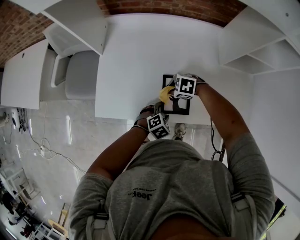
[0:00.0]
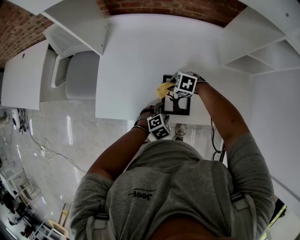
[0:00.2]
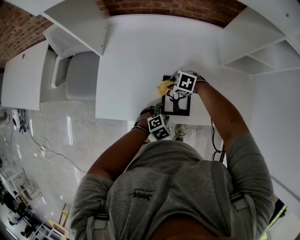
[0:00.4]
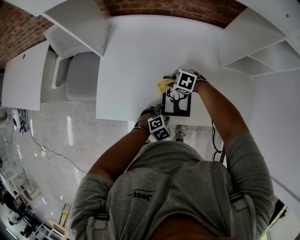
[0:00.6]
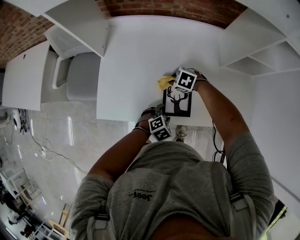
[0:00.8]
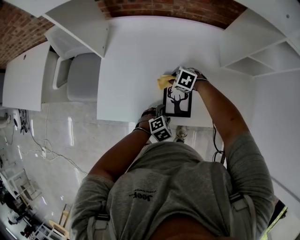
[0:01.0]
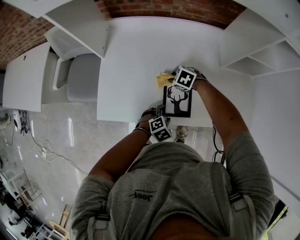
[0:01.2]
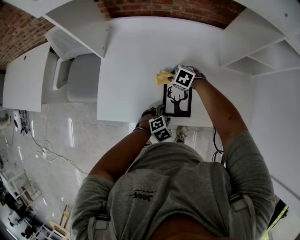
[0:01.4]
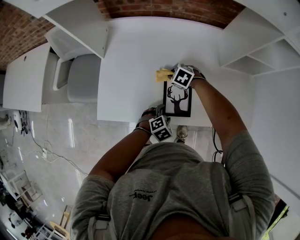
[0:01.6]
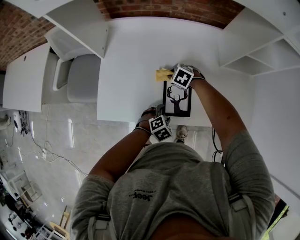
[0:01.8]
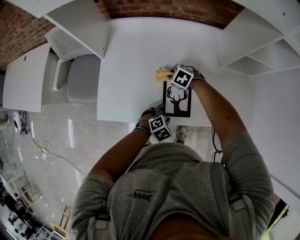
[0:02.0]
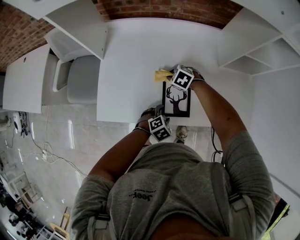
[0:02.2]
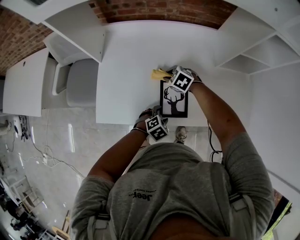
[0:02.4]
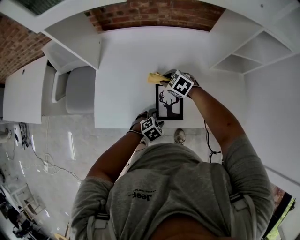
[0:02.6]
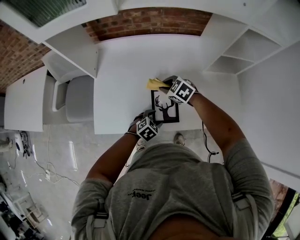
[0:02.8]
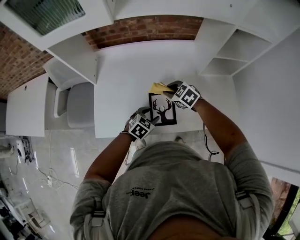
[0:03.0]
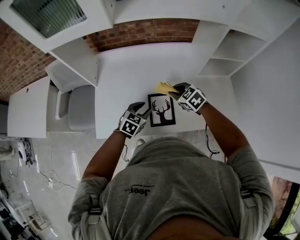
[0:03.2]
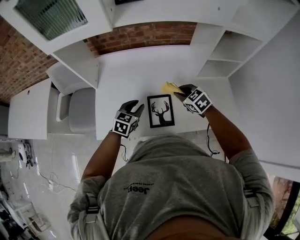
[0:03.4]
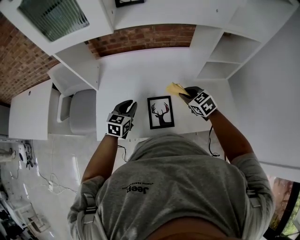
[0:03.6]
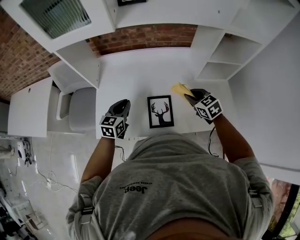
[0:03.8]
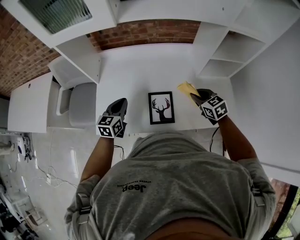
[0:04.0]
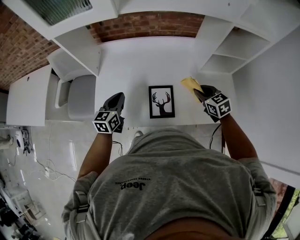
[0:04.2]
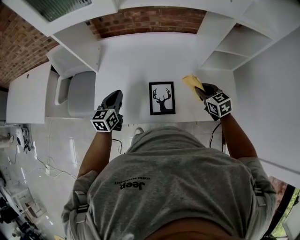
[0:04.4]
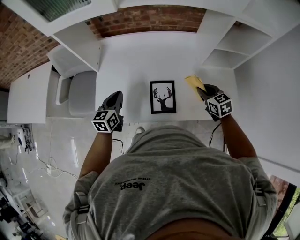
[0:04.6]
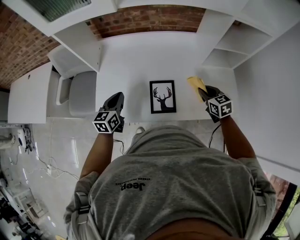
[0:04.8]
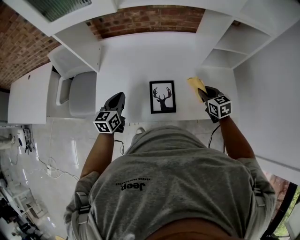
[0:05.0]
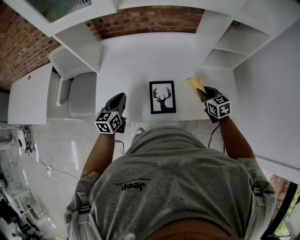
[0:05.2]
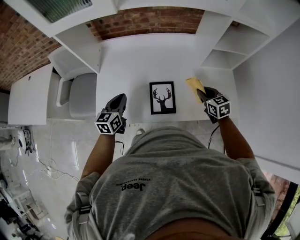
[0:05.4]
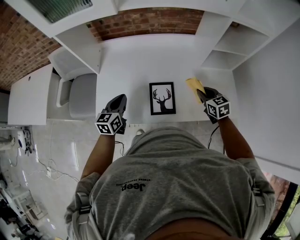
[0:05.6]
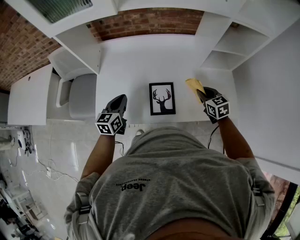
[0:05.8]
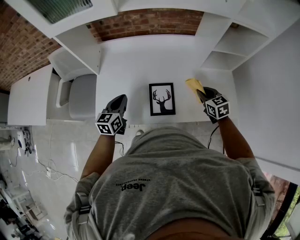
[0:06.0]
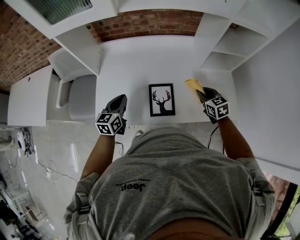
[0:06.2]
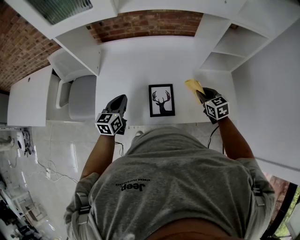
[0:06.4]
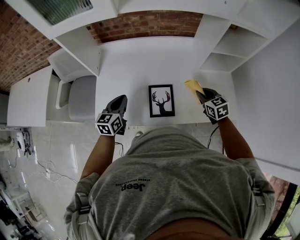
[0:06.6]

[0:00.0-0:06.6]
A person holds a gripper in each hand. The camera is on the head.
0:00.0 to 0:01.6: The right gripper ends up roughly 10 cm from where it was, and turns by some 20 degrees.
0:01.6 to 0:03.2: The right gripper is displaced upward and to the right by some 15 cm, and changes its angle by some 30 degrees, while the left gripper travels upward and forward by roughly 15 cm, and swivels about 30 degrees.
0:03.2 to 0:05.0: The left gripper travels to the left and upward by some 15 cm, changes its angle by about 40 degrees, and closes up, while the right gripper heads to the right and backward, covering some 15 cm, and turns by approximately 30 degrees.
0:05.0 to 0:06.6: The grippers stay close to where they were, moving slightly.

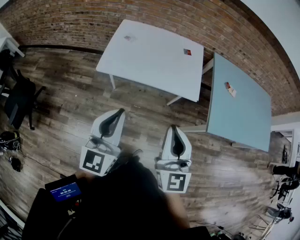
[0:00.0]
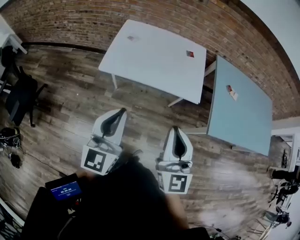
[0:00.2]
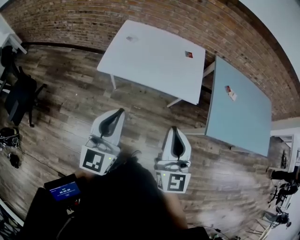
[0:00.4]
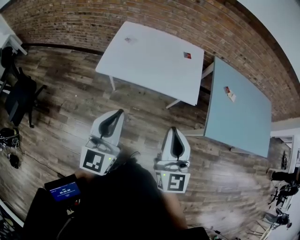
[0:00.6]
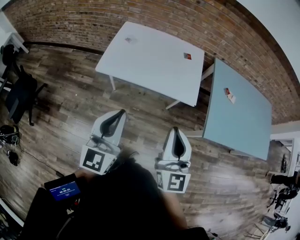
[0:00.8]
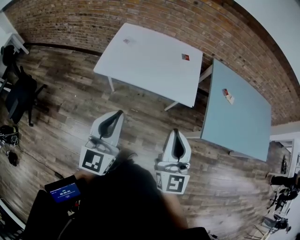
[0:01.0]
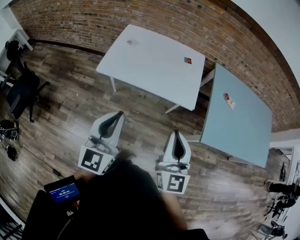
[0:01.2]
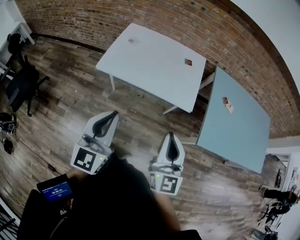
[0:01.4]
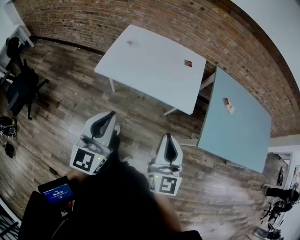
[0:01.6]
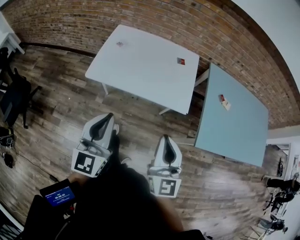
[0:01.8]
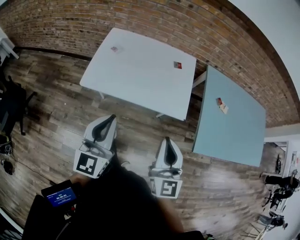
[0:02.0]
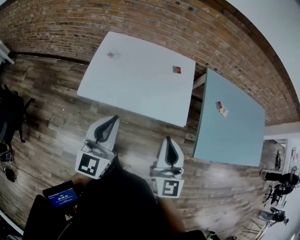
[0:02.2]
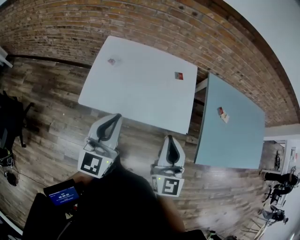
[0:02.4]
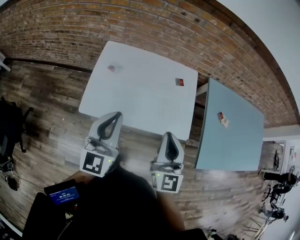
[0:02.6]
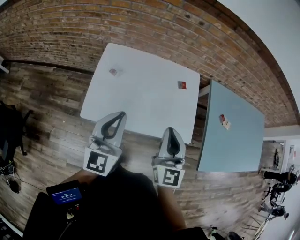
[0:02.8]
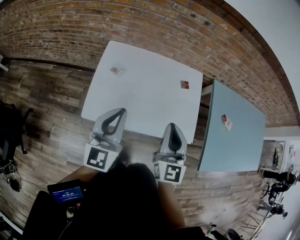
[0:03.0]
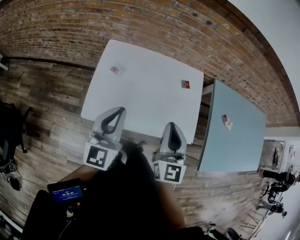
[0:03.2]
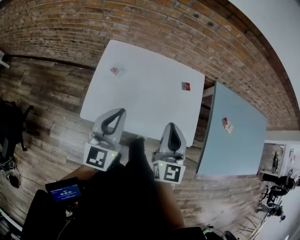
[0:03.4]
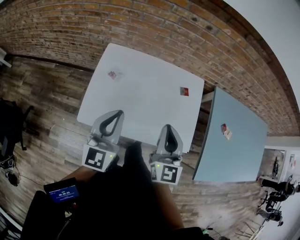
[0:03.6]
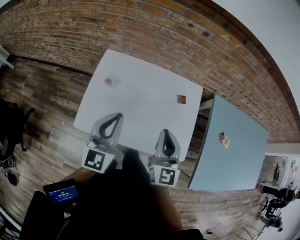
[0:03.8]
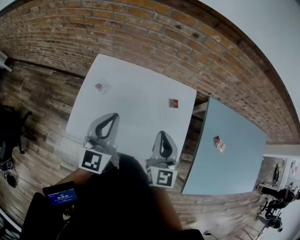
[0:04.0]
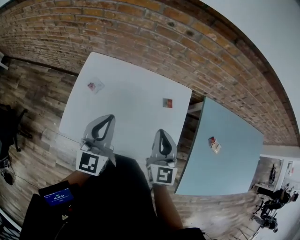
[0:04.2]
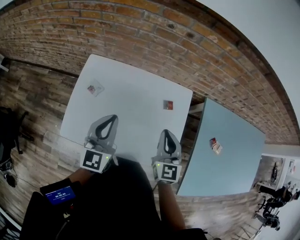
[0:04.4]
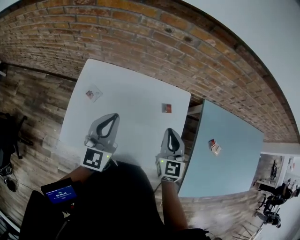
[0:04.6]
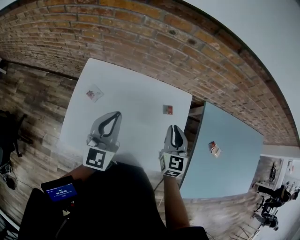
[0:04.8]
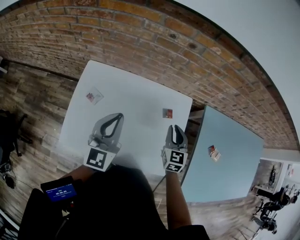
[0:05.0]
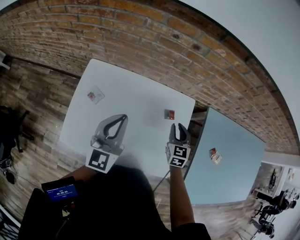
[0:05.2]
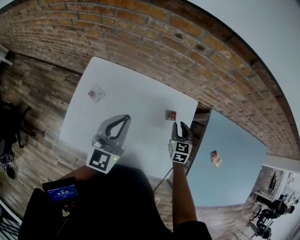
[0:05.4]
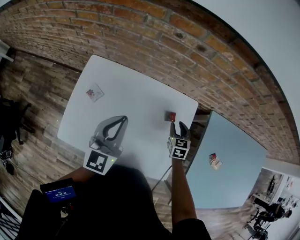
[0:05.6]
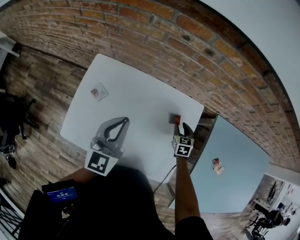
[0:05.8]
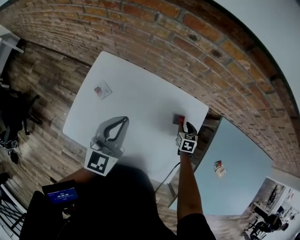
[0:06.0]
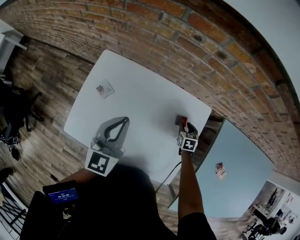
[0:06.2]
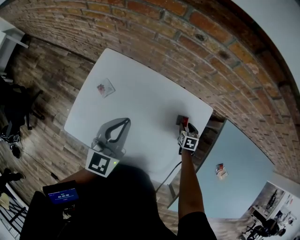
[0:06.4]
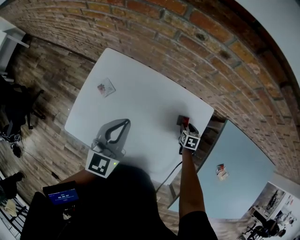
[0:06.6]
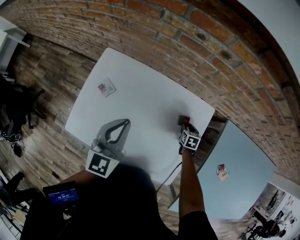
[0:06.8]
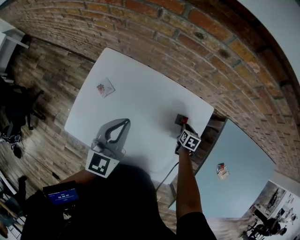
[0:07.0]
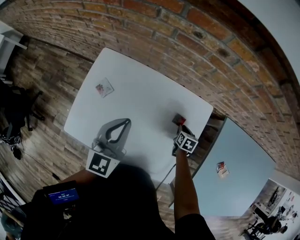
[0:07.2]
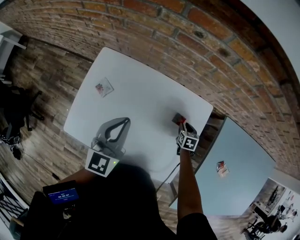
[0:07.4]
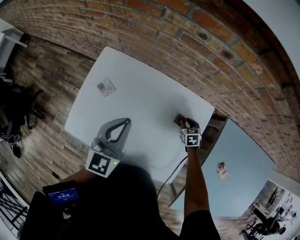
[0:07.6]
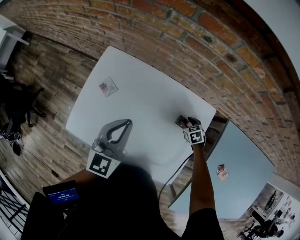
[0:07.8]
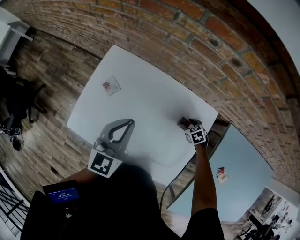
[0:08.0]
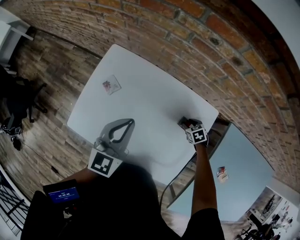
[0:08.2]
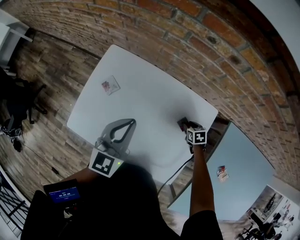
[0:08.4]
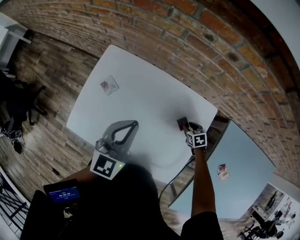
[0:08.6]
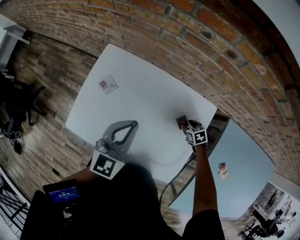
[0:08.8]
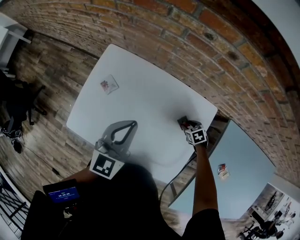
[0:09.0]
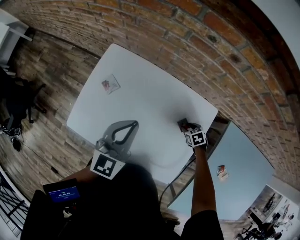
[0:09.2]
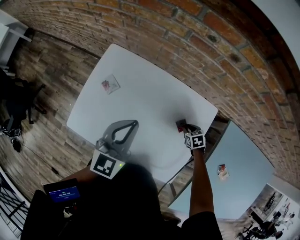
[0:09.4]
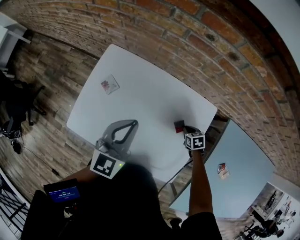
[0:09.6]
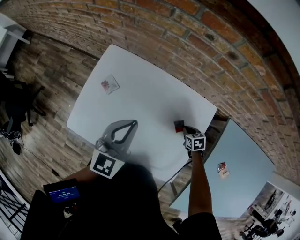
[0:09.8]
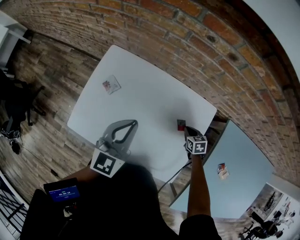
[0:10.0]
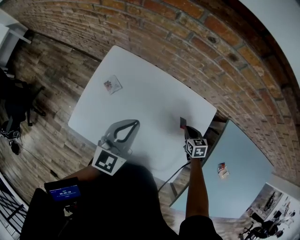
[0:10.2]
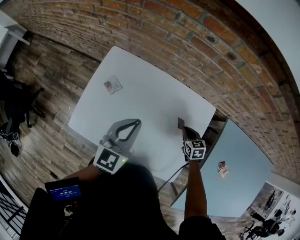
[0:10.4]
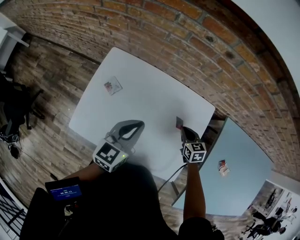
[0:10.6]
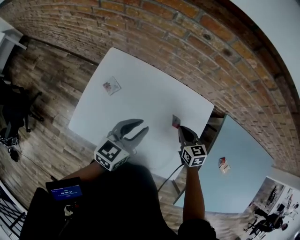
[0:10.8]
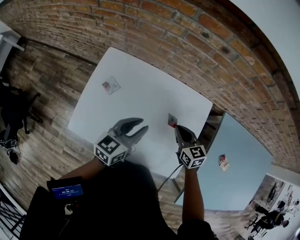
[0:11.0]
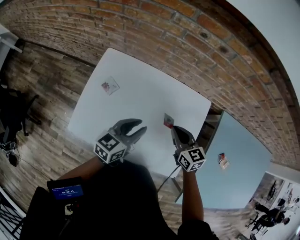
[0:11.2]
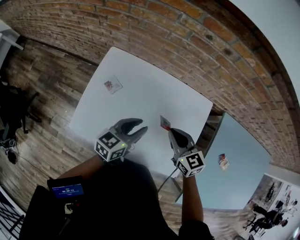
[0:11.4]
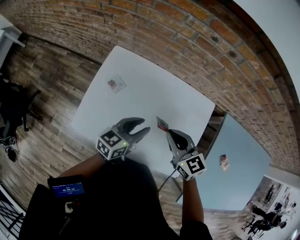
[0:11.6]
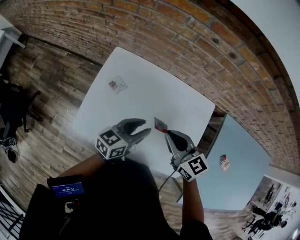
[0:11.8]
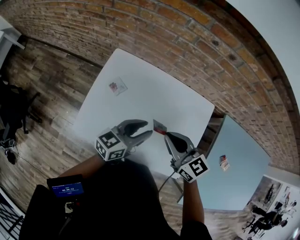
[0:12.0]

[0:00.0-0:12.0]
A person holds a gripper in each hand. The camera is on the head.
0:00.0 to 0:01.6: The right gripper heads to the right, covering about 5 cm.
0:01.6 to 0:03.0: Both grippers move forward, roughly 30 cm.
0:03.0 to 0:04.4: The right gripper travels forward, to the right and downward by about 20 cm. Meanwhile the left gripper goes approximately 15 cm forward and to the right.
0:04.4 to 0:06.0: The left gripper shifts about 10 cm forward, while the right gripper travels downward and forward by about 35 cm, angles its fingers downward, by roughly 40 degrees, and opens.
0:07.6 to 0:09.0: The right gripper turns by roughly 20 degrees.
0:09.0 to 0:10.4: The right gripper heads upward, covering roughly 10 cm, changes its angle by about 30 degrees, and closes its fingers.
0:10.4 to 0:12.0: The left gripper changes place by roughly 5 cm, swivels roughly 30 degrees, and opens up. The right gripper shifts some 30 cm upward and to the left, and points its fingers some 30 degrees further upward.

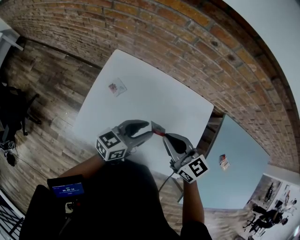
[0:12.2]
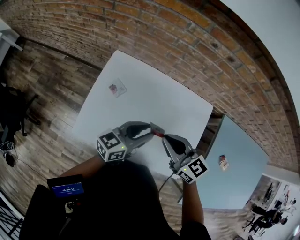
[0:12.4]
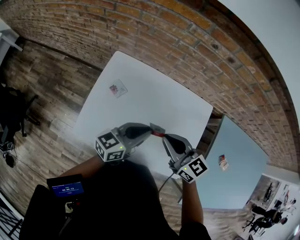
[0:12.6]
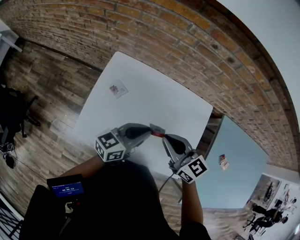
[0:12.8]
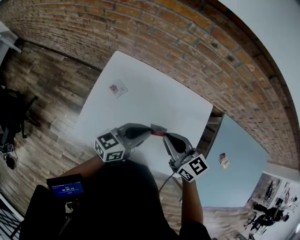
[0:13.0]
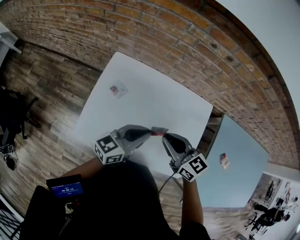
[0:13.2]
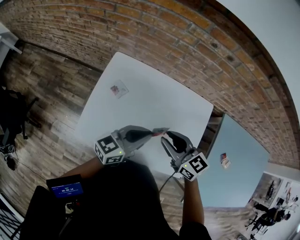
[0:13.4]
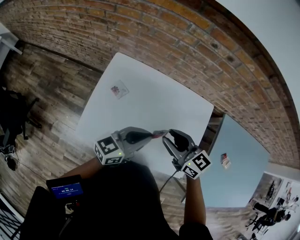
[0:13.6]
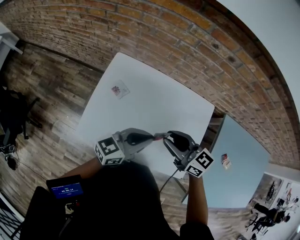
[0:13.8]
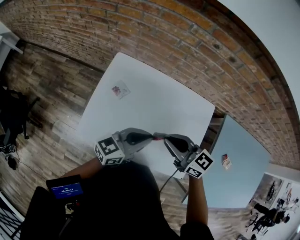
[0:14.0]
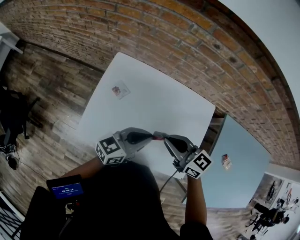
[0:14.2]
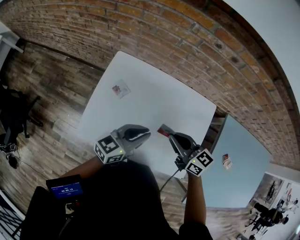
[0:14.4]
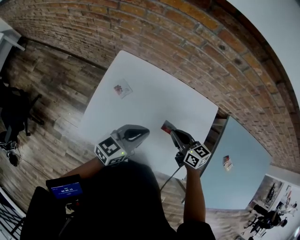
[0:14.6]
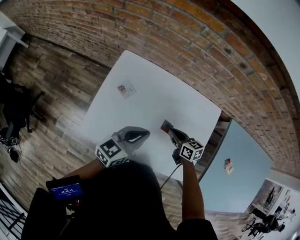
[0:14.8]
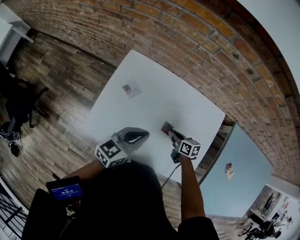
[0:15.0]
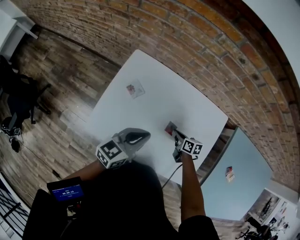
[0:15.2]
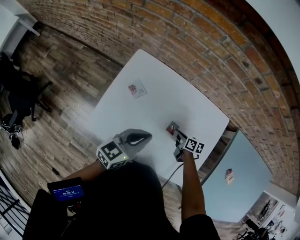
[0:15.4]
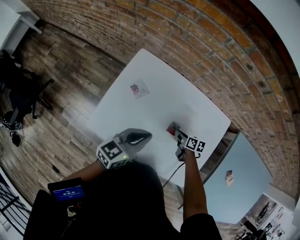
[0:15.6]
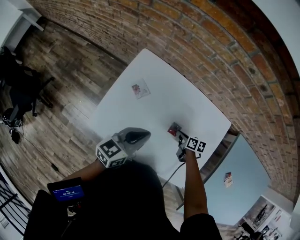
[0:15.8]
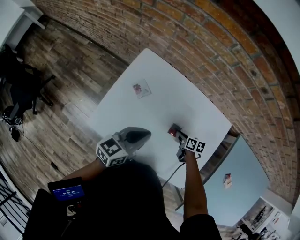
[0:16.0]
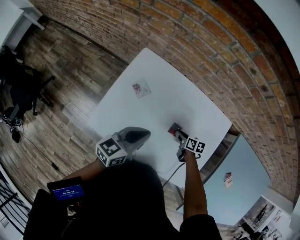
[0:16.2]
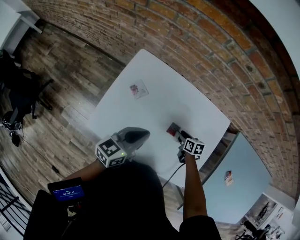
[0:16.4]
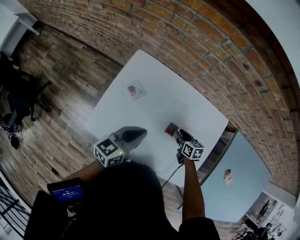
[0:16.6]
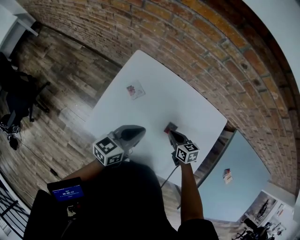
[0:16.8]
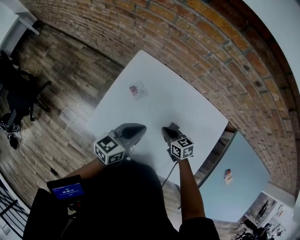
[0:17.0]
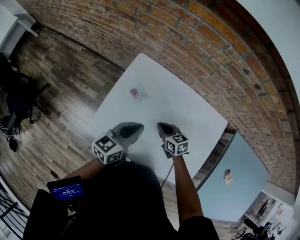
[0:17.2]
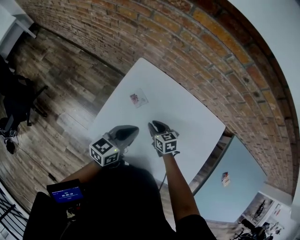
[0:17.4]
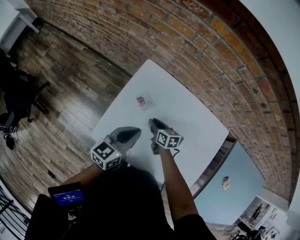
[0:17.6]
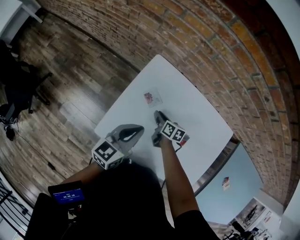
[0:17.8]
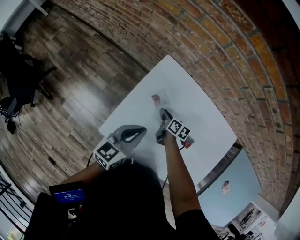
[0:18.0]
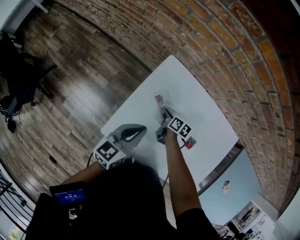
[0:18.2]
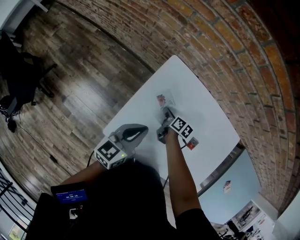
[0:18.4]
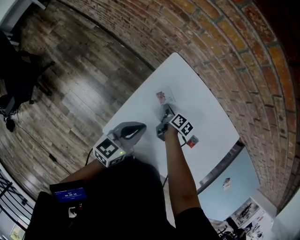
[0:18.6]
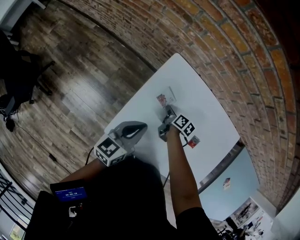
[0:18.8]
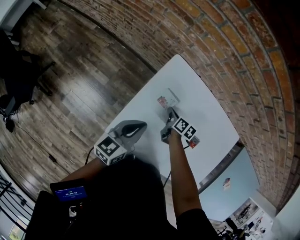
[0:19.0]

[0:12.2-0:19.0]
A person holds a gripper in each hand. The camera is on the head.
0:12.2 to 0:13.6: The left gripper closes its fingers. The right gripper opens.
0:13.6 to 0:15.0: The left gripper heads downward, covering approximately 5 cm. The right gripper is displaced downward by some 25 cm, changes its angle by about 40 degrees, and closes.
0:15.0 to 0:16.2: The right gripper moves downward, approximately 5 cm, and opens.
0:16.2 to 0:17.6: The right gripper heads to the left, covering about 20 cm, and closes, then opens again. The left gripper shifts some 10 cm to the left.
0:17.6 to 0:19.0: The right gripper travels forward by about 5 cm, and changes its angle by some 20 degrees; the left gripper is displaced to the left by approximately 10 cm.
